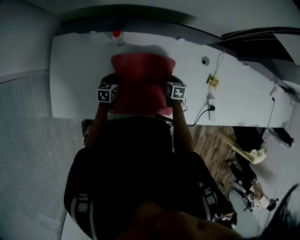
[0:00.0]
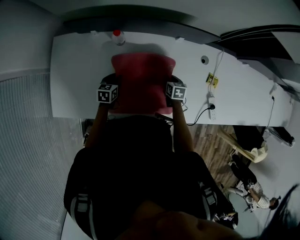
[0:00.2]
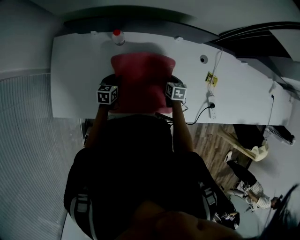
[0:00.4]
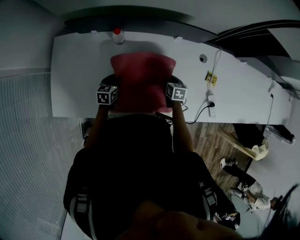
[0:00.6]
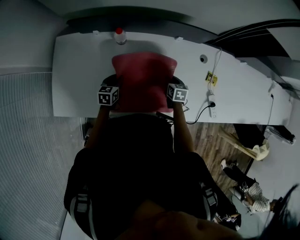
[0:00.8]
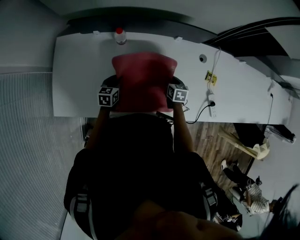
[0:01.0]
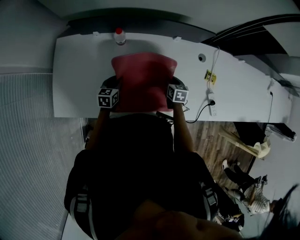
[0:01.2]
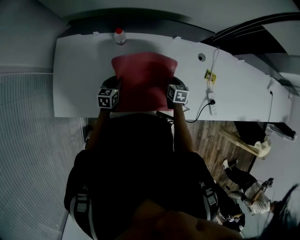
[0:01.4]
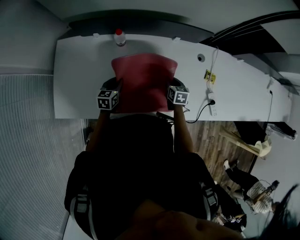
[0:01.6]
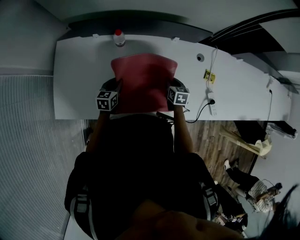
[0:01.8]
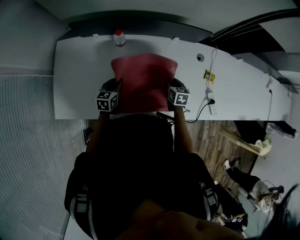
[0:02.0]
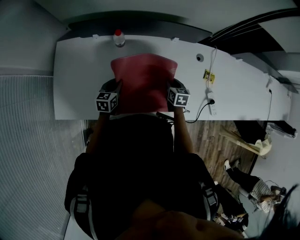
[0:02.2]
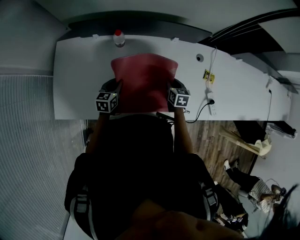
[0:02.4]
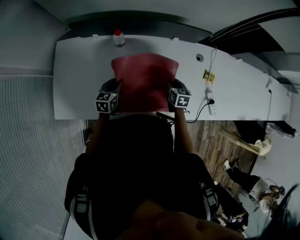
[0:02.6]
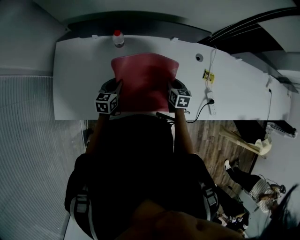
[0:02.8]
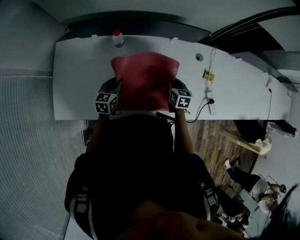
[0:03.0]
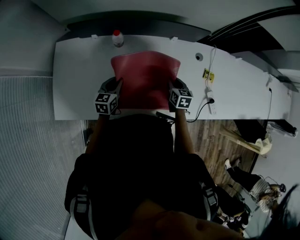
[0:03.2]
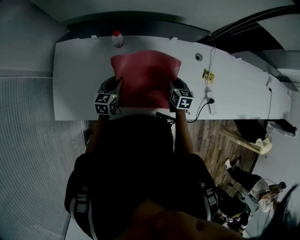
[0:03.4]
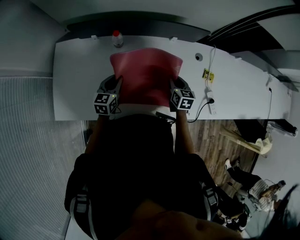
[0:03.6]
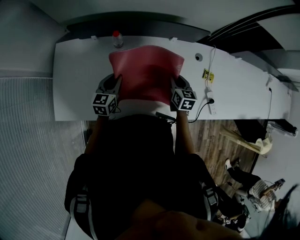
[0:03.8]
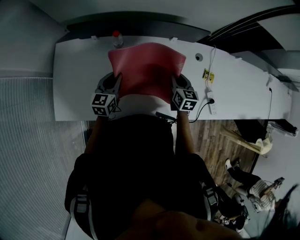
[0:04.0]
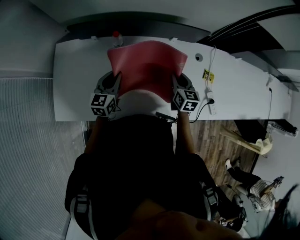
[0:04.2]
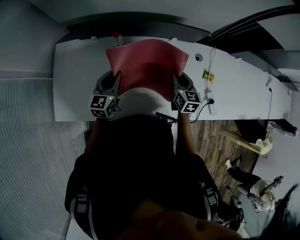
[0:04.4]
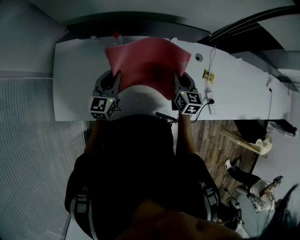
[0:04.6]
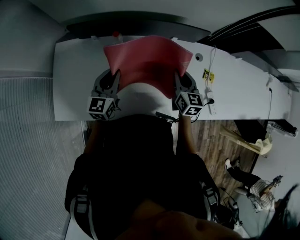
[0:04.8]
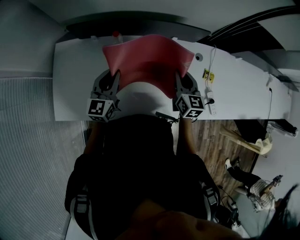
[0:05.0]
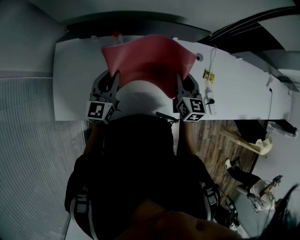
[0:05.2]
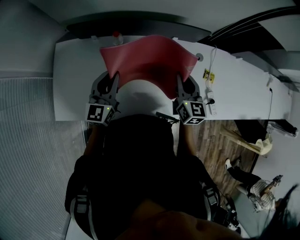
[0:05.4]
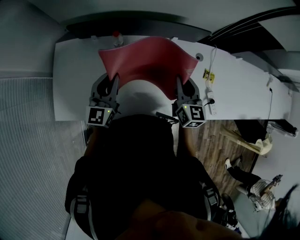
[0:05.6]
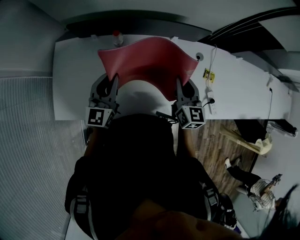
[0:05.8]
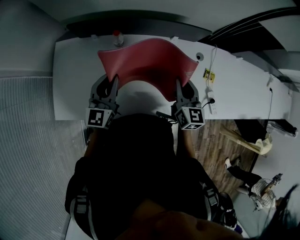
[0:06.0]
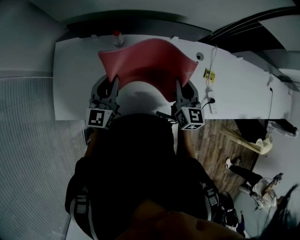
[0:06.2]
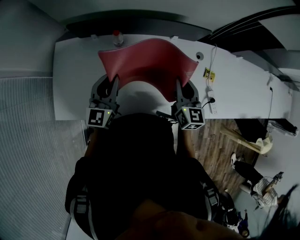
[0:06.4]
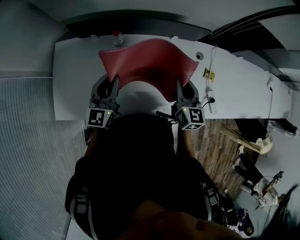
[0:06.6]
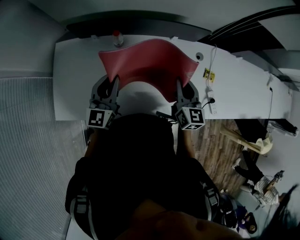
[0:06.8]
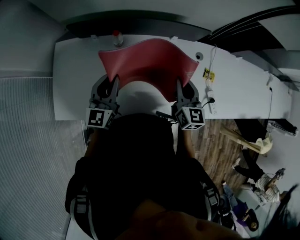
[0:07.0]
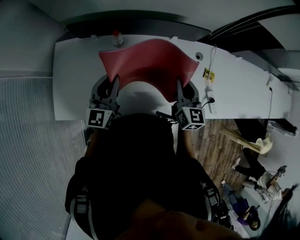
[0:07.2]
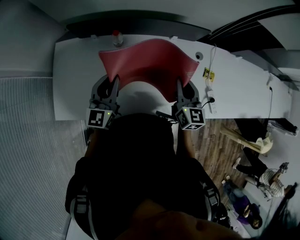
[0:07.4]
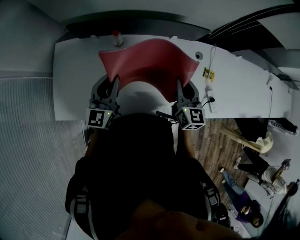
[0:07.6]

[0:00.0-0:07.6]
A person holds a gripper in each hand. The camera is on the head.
0:00.0 to 0:01.6: Both grippers move upward, some 5 cm.
0:01.6 to 0:03.0: The grippers move only a little.
0:03.0 to 0:04.6: Both grippers travel together upward, roughly 15 cm. The left gripper changes its angle by about 20 degrees.
0:04.6 to 0:06.0: The grippers both shift upward by some 5 cm.
0:06.0 to 0:07.6: The two grippers keep their place.

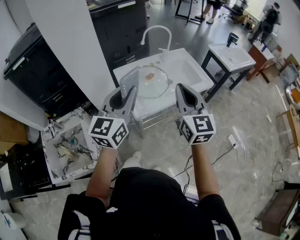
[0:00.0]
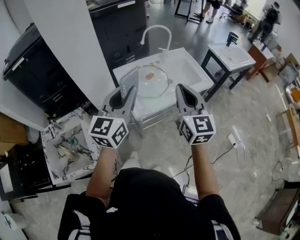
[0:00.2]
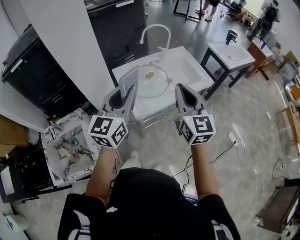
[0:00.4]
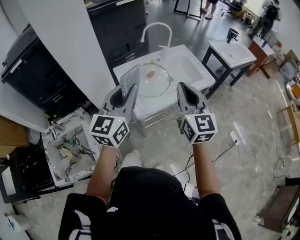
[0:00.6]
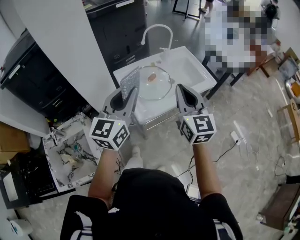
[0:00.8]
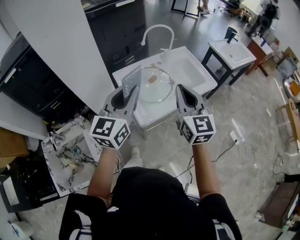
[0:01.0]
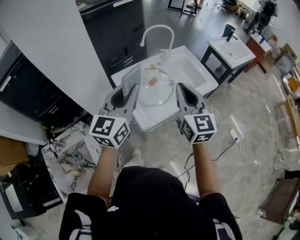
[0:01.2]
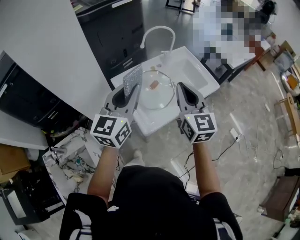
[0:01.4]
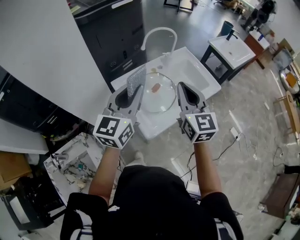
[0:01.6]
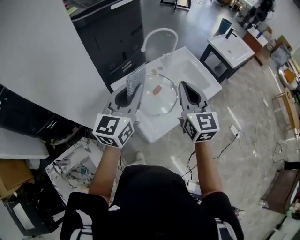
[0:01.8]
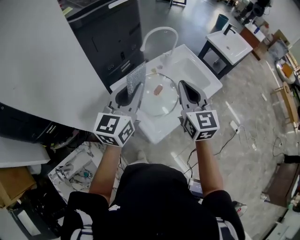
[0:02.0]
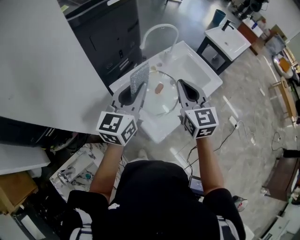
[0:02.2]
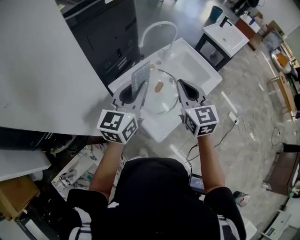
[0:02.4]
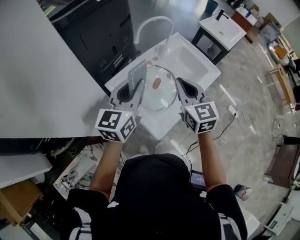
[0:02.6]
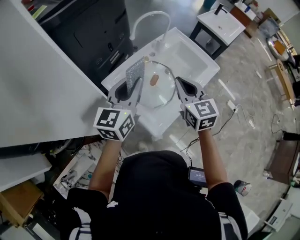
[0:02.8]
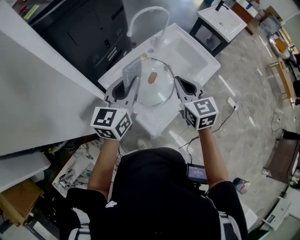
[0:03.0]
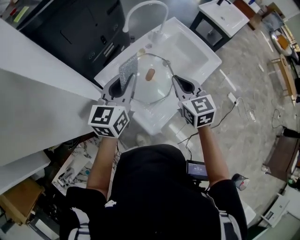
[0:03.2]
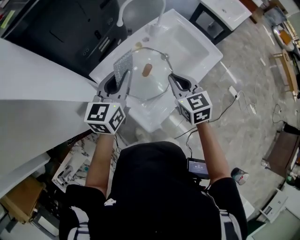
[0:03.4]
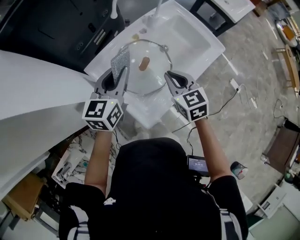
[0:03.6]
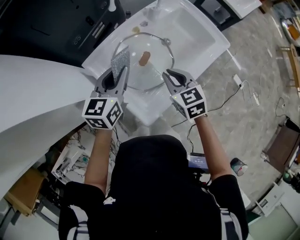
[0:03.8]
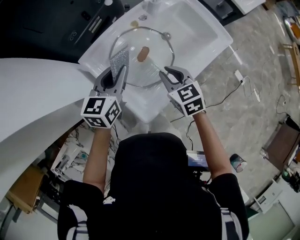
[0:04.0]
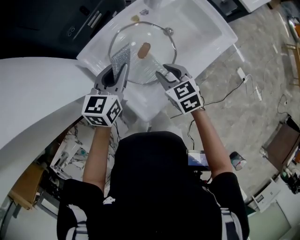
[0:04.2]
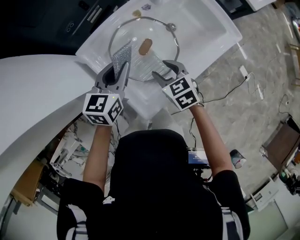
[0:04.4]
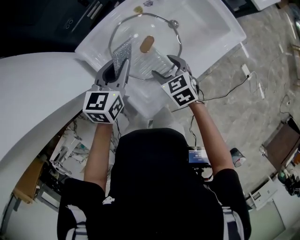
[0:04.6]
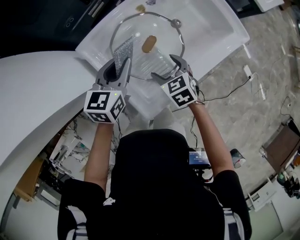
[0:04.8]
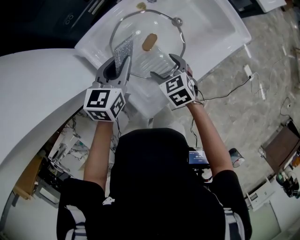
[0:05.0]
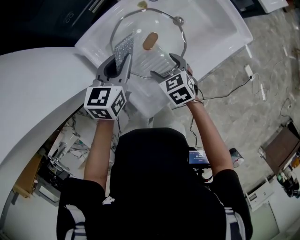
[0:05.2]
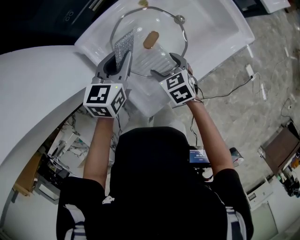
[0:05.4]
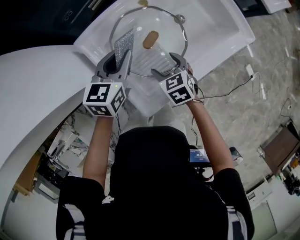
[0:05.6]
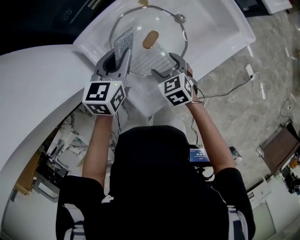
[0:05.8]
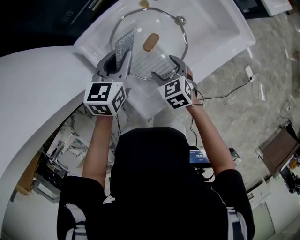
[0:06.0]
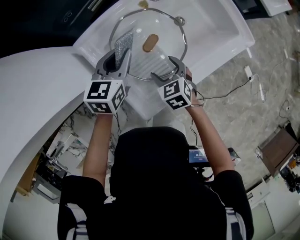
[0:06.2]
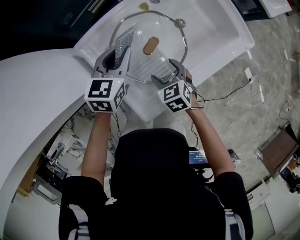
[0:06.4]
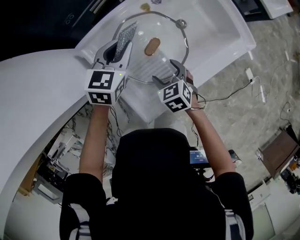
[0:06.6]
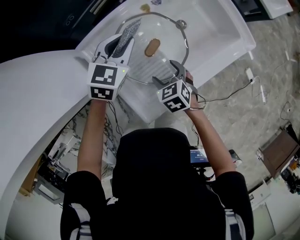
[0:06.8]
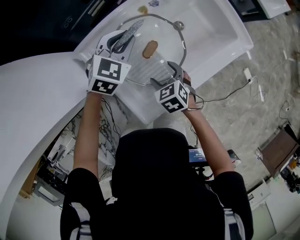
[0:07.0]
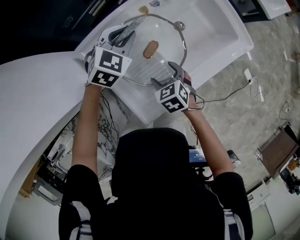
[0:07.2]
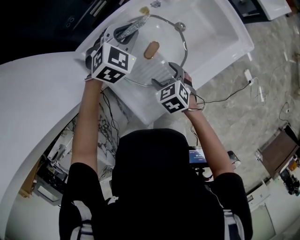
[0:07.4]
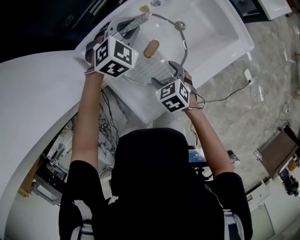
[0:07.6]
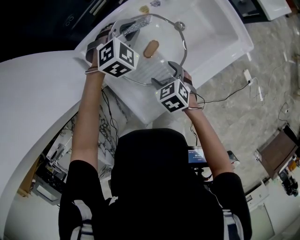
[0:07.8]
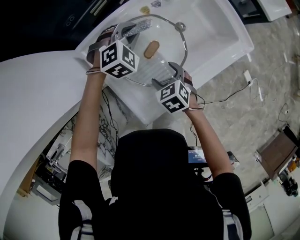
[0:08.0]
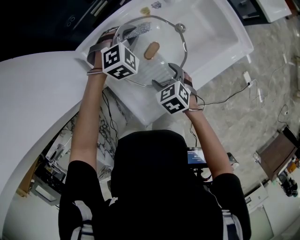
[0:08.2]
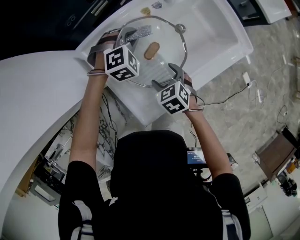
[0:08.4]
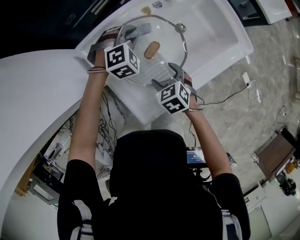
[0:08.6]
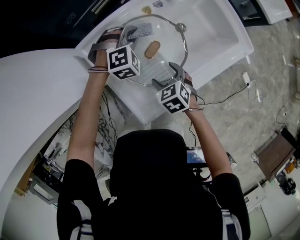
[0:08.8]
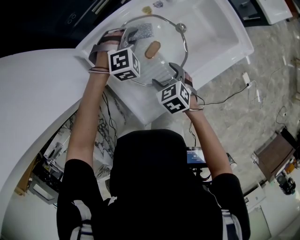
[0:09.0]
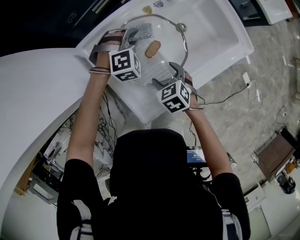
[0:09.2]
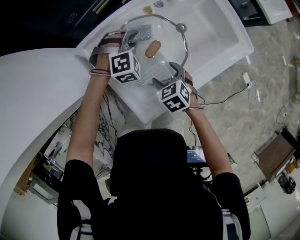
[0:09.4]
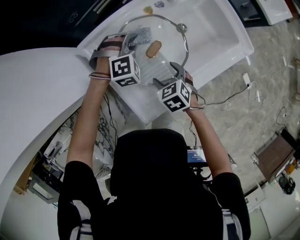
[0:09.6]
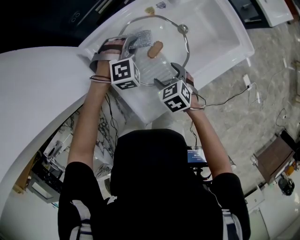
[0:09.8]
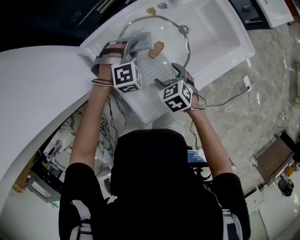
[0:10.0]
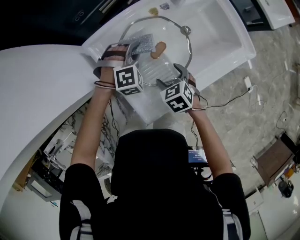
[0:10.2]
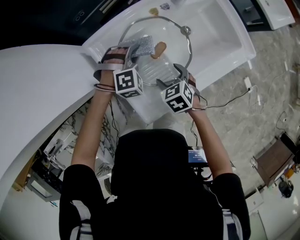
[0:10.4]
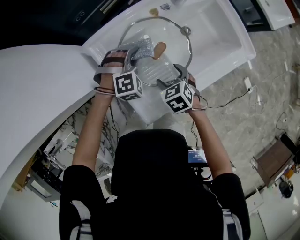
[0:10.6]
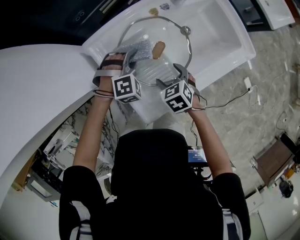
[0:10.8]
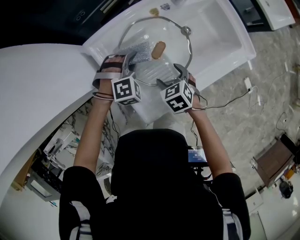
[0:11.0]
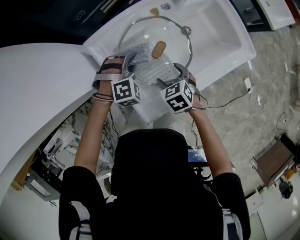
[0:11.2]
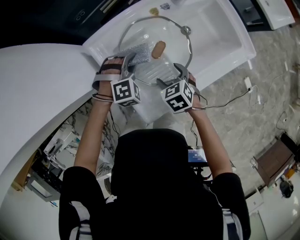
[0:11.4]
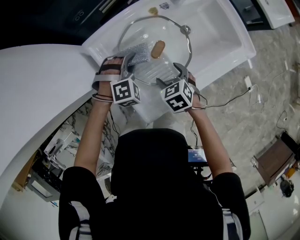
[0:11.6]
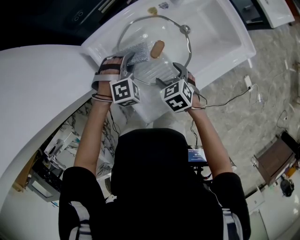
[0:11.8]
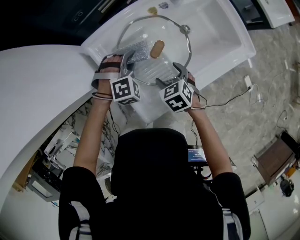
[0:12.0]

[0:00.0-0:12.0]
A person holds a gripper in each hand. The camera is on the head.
0:00.0 to 0:01.6: The right gripper moves forward and to the left, some 20 cm. The left gripper travels forward by some 20 cm.
0:01.6 to 0:03.0: The left gripper travels forward and downward by approximately 15 cm. Meanwhile the right gripper heads downward and forward, covering approximately 15 cm.
0:03.0 to 0:04.4: The grippers both shift downward by about 20 cm. The left gripper turns by approximately 20 degrees. Meanwhile the right gripper changes its angle by roughly 30 degrees, and opens its fingers.
0:04.4 to 0:06.0: The right gripper is displaced downward by roughly 5 cm, and opens up.
0:06.0 to 0:07.6: The left gripper is displaced forward by about 10 cm, and twists some 50 degrees clockwise, seen from behind.
0:07.6 to 0:09.0: The left gripper travels downward by roughly 5 cm, and rotates some 20 degrees.
0:09.0 to 0:10.4: The left gripper shifts approximately 5 cm backward.
0:10.4 to 0:12.0: The grippers move only a little.

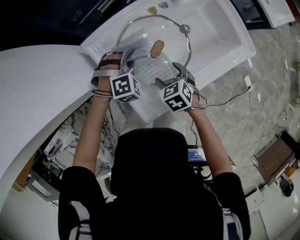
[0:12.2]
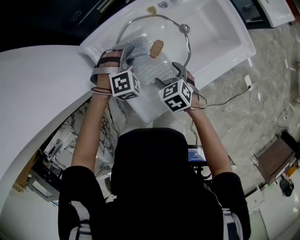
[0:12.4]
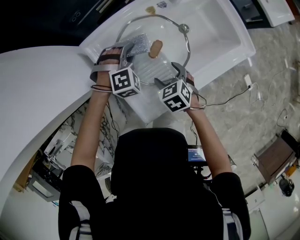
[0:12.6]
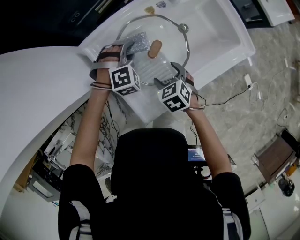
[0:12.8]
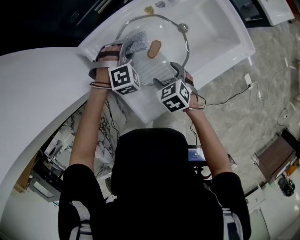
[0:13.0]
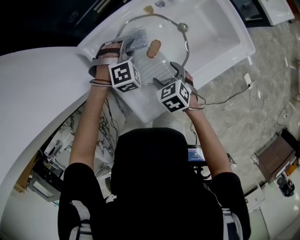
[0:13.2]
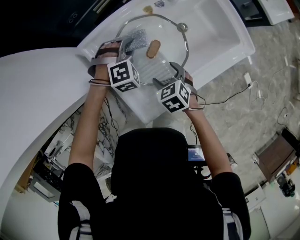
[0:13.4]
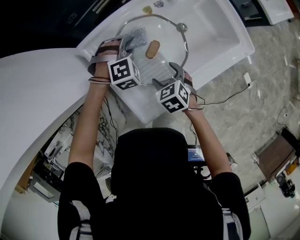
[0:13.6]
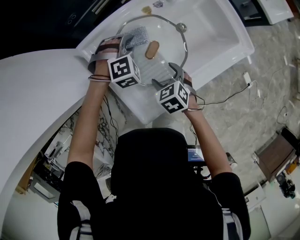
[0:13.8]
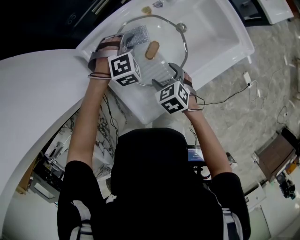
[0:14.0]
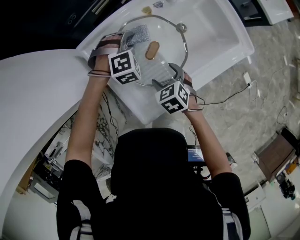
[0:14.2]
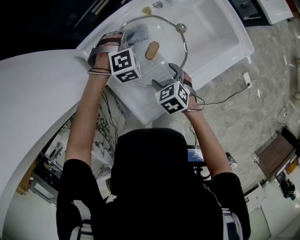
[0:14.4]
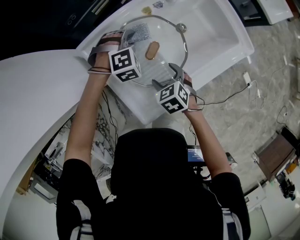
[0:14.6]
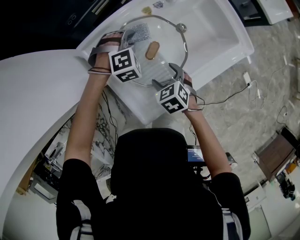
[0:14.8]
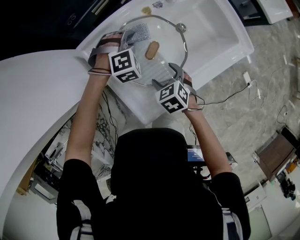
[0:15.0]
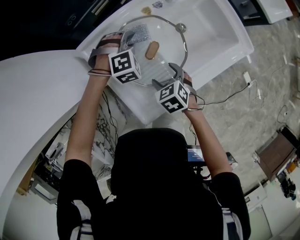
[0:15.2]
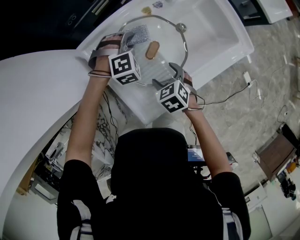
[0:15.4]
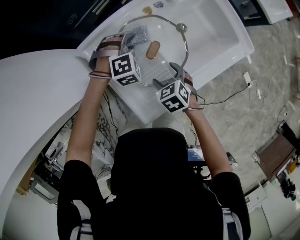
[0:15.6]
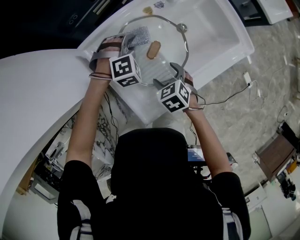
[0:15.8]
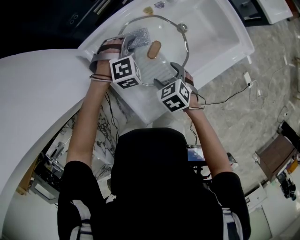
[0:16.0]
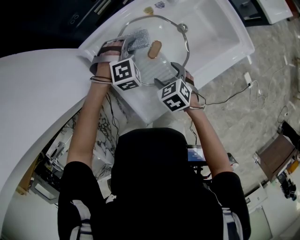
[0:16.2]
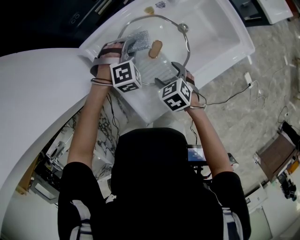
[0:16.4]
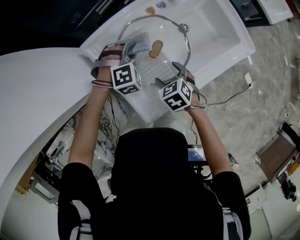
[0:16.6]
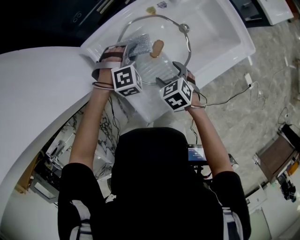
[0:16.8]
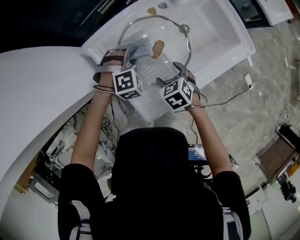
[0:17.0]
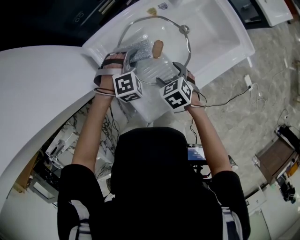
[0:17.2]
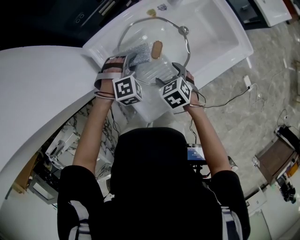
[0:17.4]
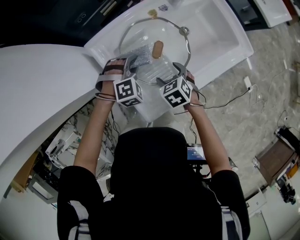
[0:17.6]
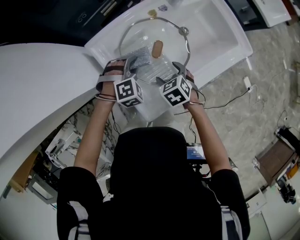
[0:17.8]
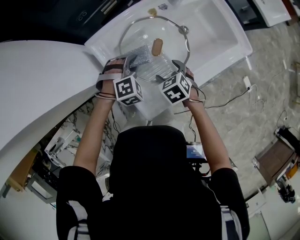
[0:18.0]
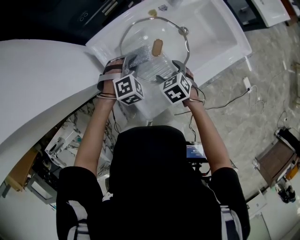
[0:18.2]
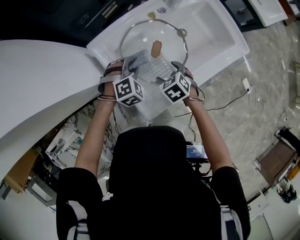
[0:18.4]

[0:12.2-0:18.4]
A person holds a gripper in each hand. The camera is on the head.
0:12.2 to 0:13.8: The left gripper ends up about 5 cm from where it was.
0:13.8 to 0:16.8: The grippers move only a little.
0:16.8 to 0:18.4: The left gripper moves backward, about 5 cm.
